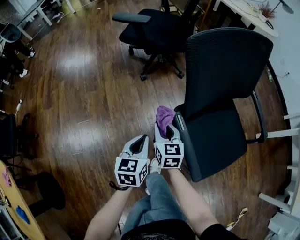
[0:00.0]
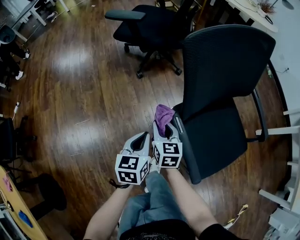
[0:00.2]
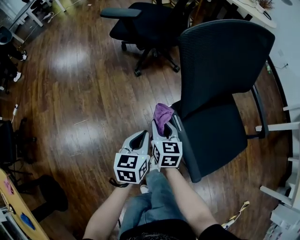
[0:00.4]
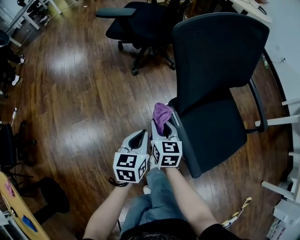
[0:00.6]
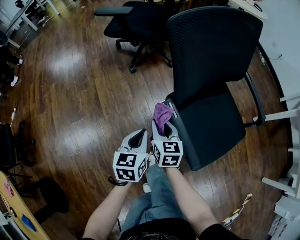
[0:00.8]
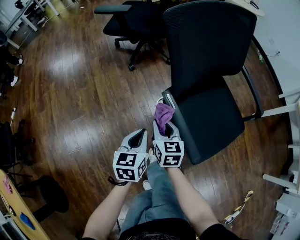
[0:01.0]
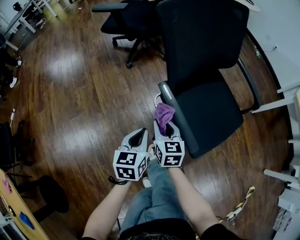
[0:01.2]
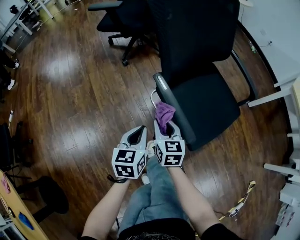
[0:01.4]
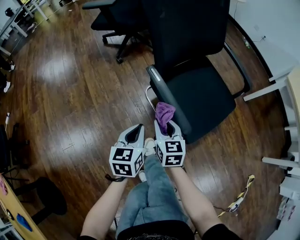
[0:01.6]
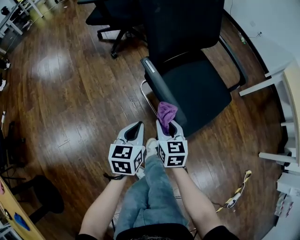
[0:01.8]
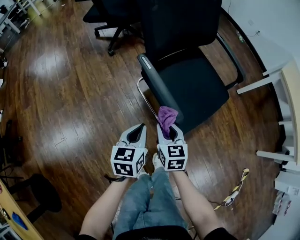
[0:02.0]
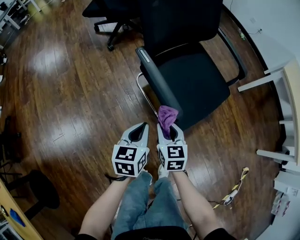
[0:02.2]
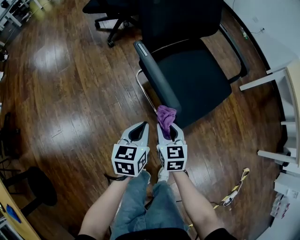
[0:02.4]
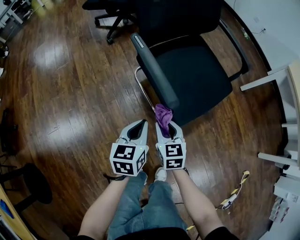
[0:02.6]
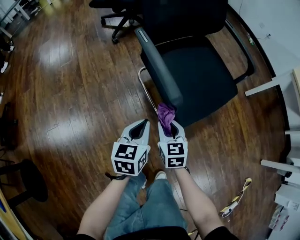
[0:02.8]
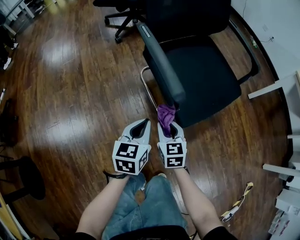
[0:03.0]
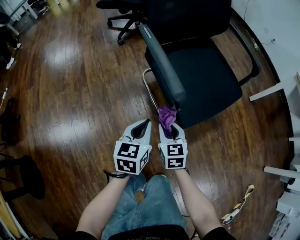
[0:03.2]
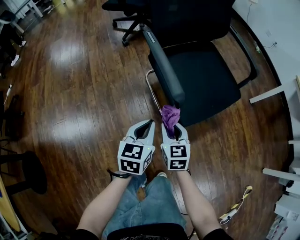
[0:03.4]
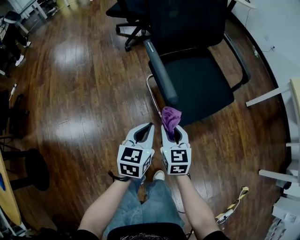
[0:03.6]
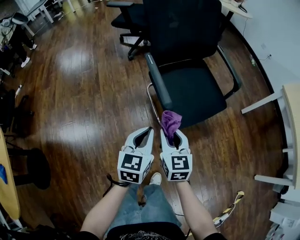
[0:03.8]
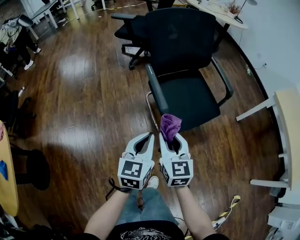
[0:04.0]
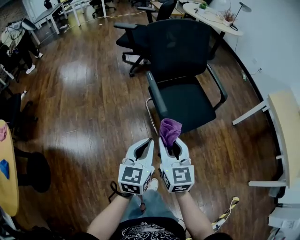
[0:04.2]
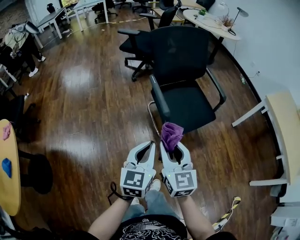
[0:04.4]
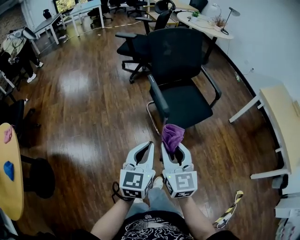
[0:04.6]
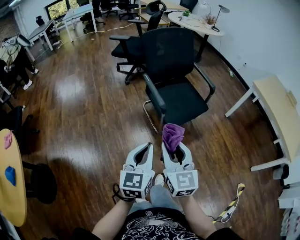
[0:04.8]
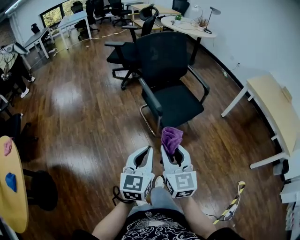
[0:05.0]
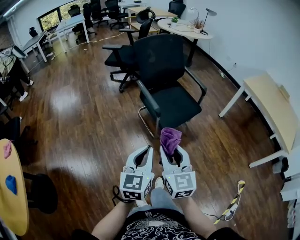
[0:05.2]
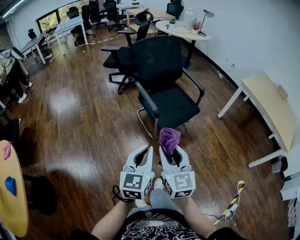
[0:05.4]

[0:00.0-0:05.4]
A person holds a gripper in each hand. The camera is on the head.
0:00.0 to 0:01.4: Both grippers move backward and to the right, some 15 cm.
0:01.4 to 0:02.8: Both grippers move to the right, backward and downward, roughly 20 cm.
0:02.8 to 0:04.0: The right gripper is displaced upward by approximately 30 cm; the left gripper shifts roughly 30 cm upward and backward.
0:04.0 to 0:05.4: The grippers both shift backward and upward by approximately 25 cm.

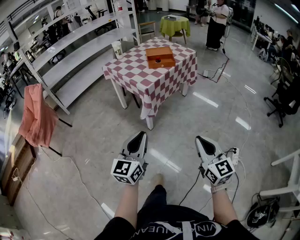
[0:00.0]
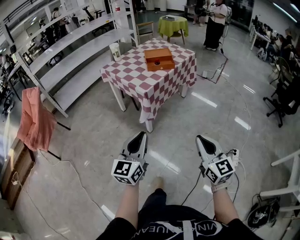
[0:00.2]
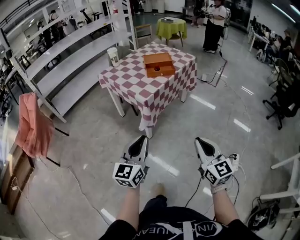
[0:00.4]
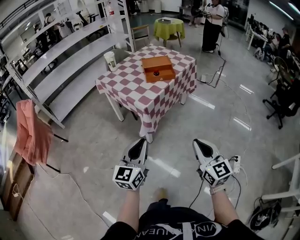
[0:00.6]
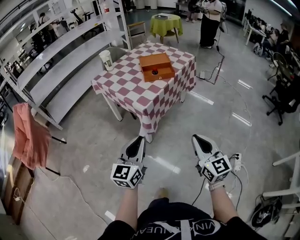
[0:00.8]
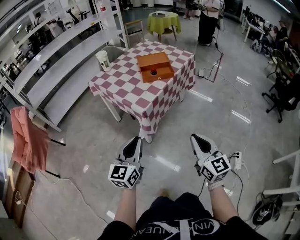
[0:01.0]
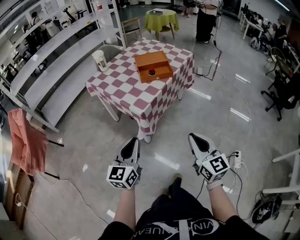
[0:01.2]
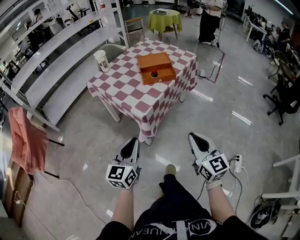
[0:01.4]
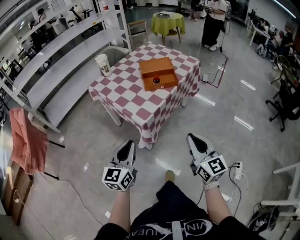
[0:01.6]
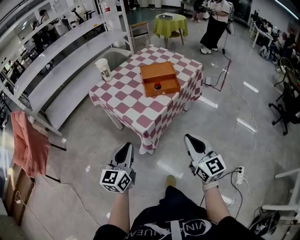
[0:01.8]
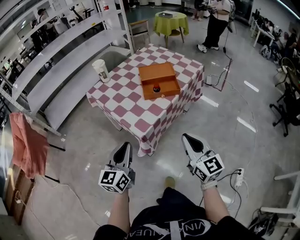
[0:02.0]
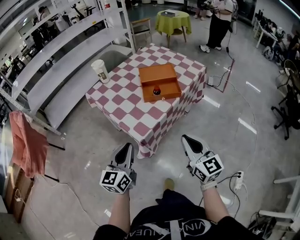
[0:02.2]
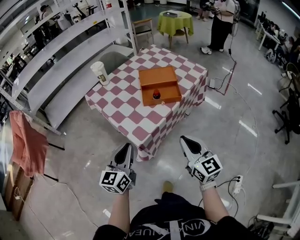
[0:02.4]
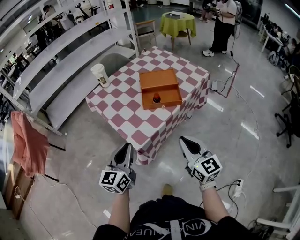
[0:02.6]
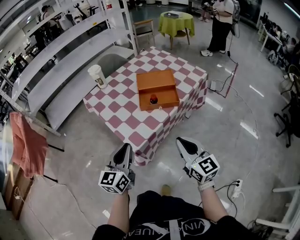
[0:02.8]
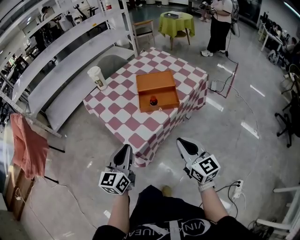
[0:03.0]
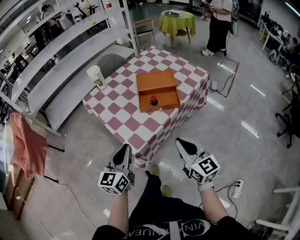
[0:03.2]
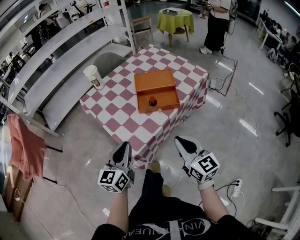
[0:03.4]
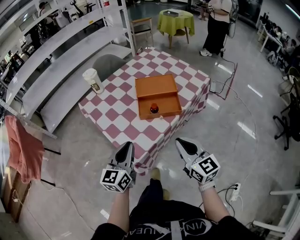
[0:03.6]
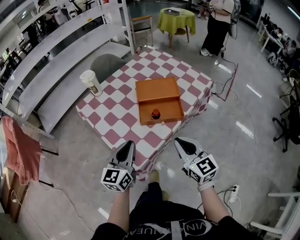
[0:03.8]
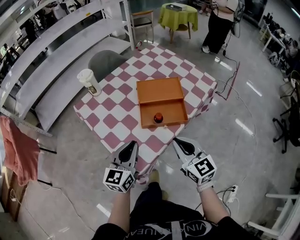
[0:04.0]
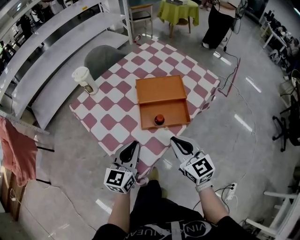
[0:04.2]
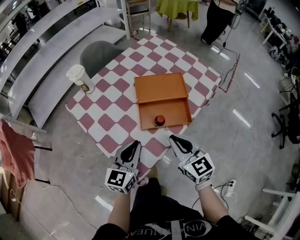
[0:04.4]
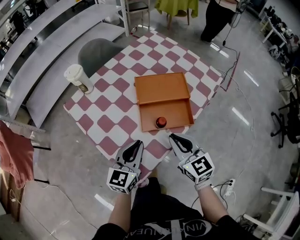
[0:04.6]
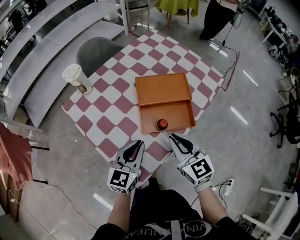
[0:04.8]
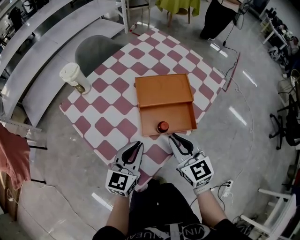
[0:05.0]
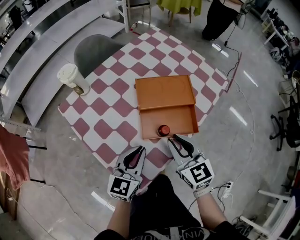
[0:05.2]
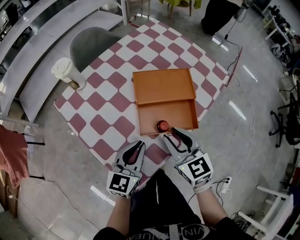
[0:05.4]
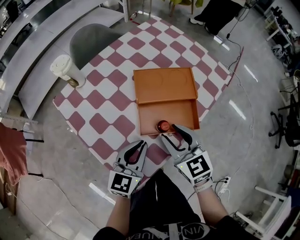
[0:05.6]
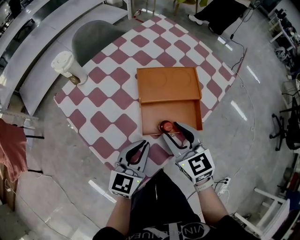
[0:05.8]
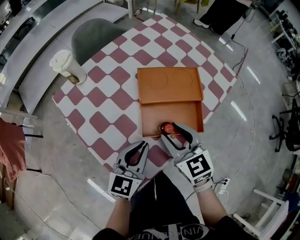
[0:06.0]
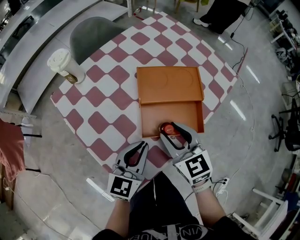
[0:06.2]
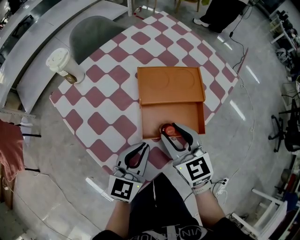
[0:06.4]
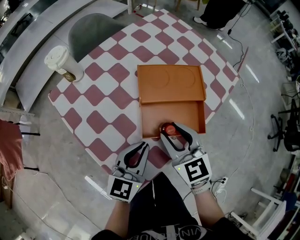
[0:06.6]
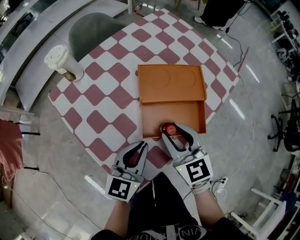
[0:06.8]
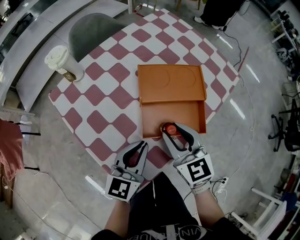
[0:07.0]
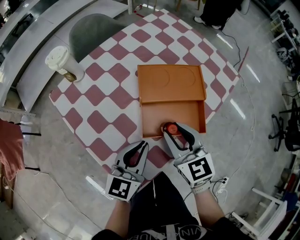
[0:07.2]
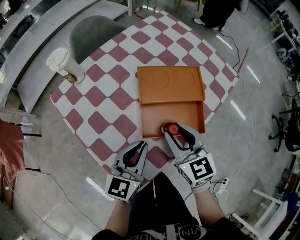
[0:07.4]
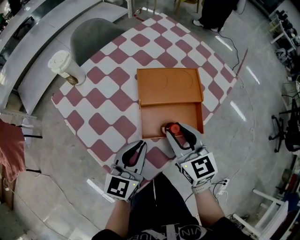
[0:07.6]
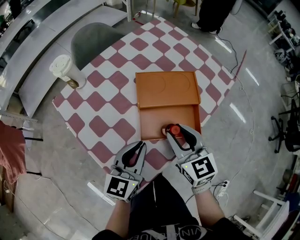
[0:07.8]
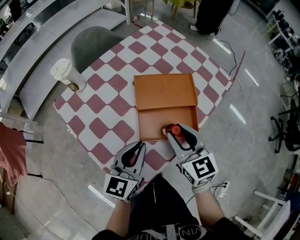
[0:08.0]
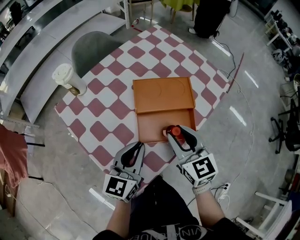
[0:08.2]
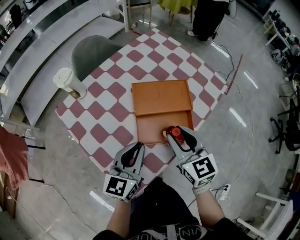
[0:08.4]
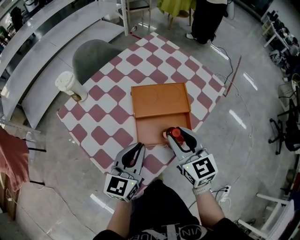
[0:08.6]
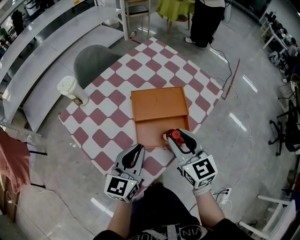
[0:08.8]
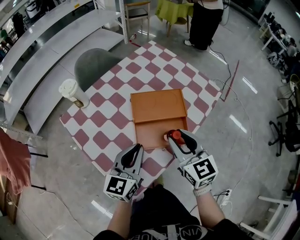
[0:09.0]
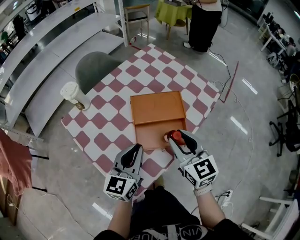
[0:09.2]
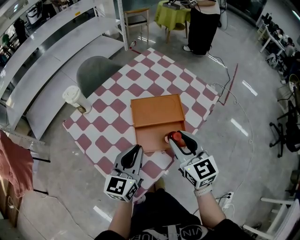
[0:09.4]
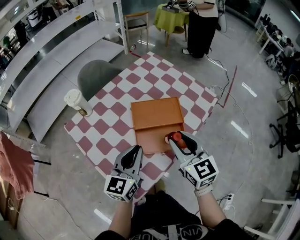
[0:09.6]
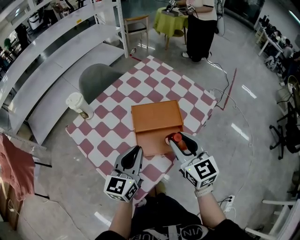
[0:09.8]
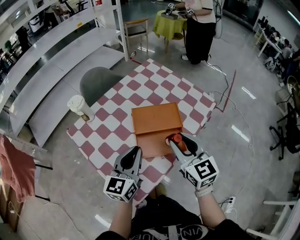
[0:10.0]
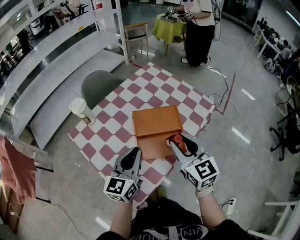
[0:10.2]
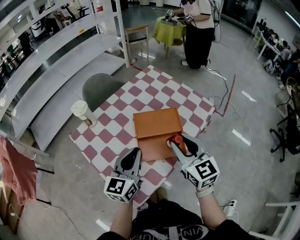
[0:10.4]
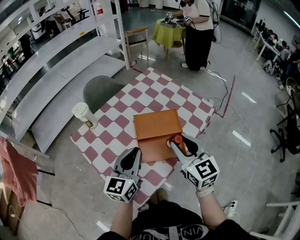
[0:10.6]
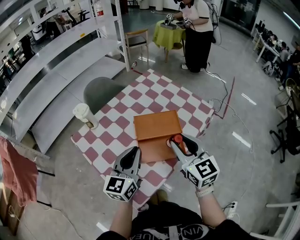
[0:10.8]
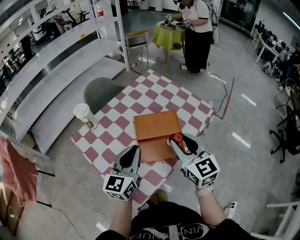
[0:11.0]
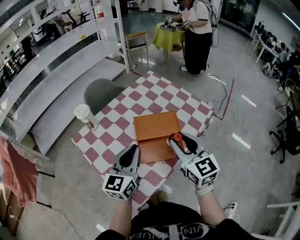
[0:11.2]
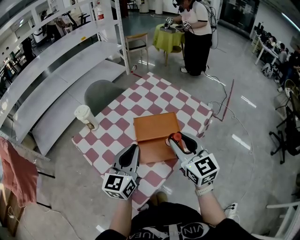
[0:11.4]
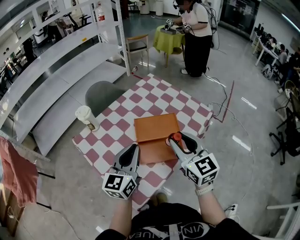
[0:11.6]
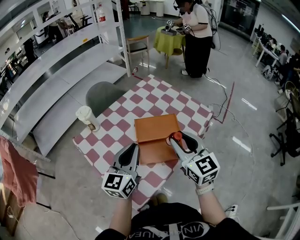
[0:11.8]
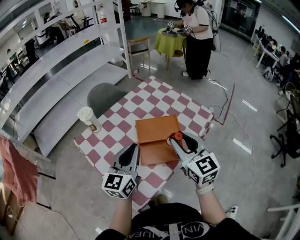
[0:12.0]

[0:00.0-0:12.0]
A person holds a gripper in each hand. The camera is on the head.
0:00.0 to 0:01.6: The two grippers go roughly 30 cm forward.
0:01.6 to 0:03.0: The two grippers go approximately 15 cm forward.
0:03.0 to 0:04.4: Both grippers travel together forward, approximately 20 cm.
0:04.4 to 0:06.0: The right gripper moves forward, roughly 10 cm, and opens up, while the left gripper shifts by about 5 cm.
0:06.0 to 0:07.6: The grippers move only a little.
0:07.6 to 0:09.0: The two grippers go about 5 cm upward.
0:09.0 to 0:10.4: Both grippers move upward, some 5 cm.
0:10.4 to 0:12.0: There are only small adjustments of the grippers.

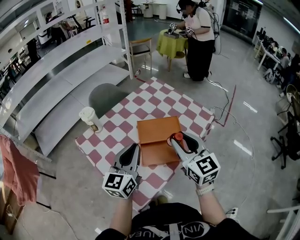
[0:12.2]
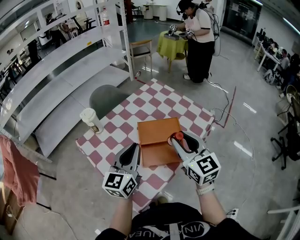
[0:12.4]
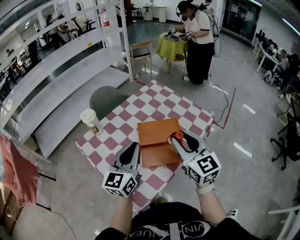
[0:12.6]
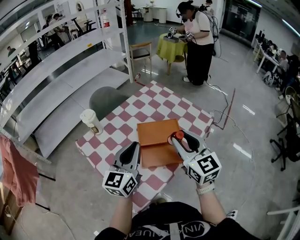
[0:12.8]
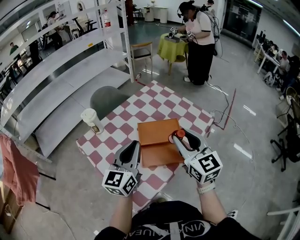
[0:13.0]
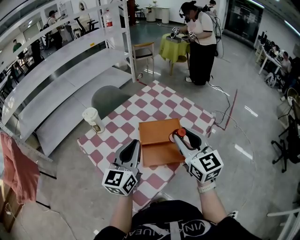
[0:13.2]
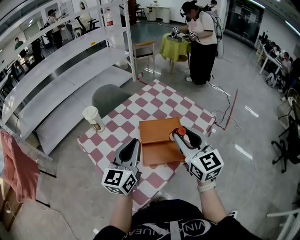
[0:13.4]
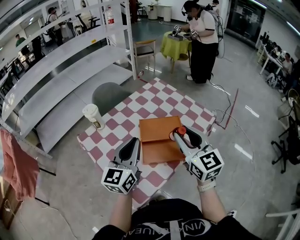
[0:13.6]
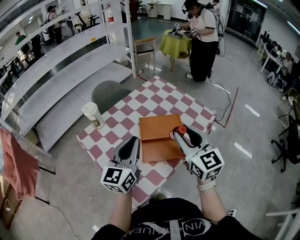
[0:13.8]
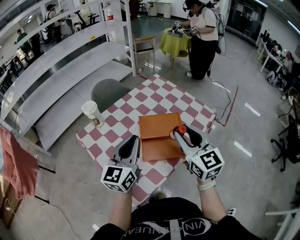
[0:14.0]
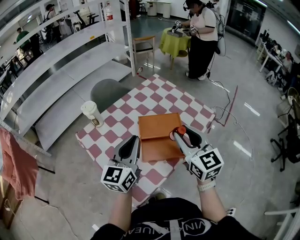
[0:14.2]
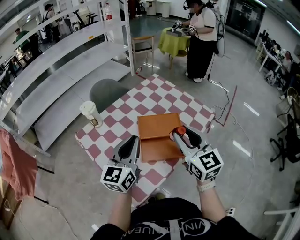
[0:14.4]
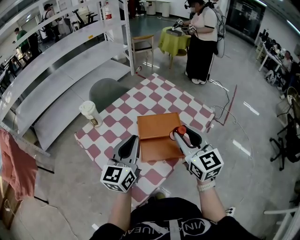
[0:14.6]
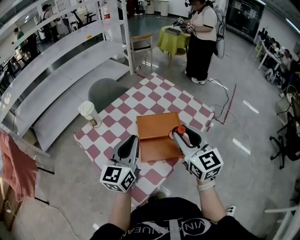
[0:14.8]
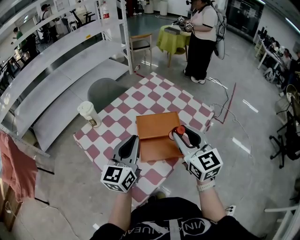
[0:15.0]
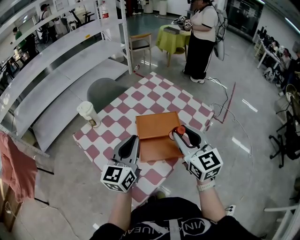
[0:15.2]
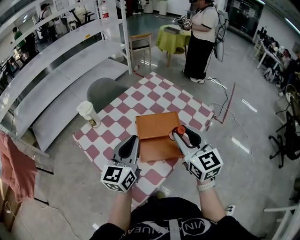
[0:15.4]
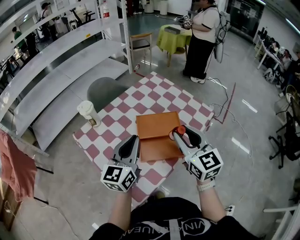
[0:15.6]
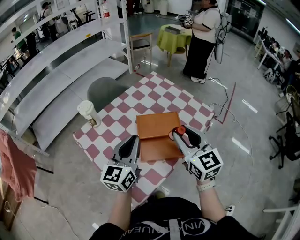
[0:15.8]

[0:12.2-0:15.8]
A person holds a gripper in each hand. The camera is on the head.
0:12.2 to 0:15.8: The grippers move only a little.

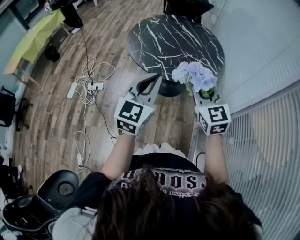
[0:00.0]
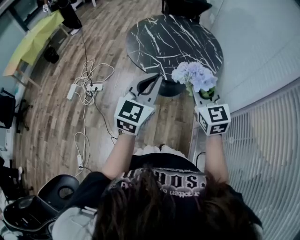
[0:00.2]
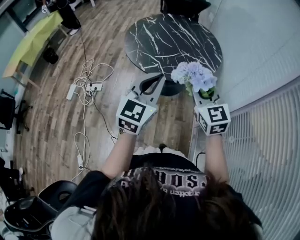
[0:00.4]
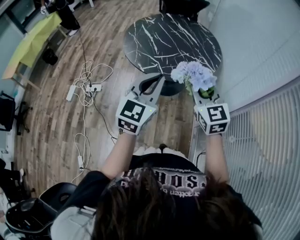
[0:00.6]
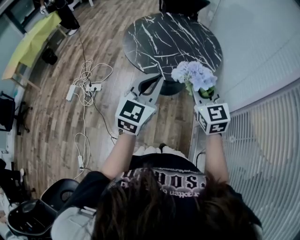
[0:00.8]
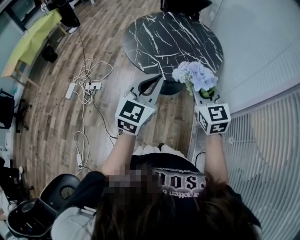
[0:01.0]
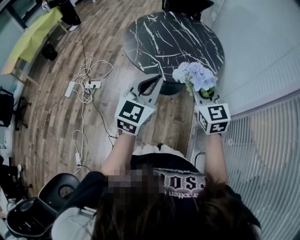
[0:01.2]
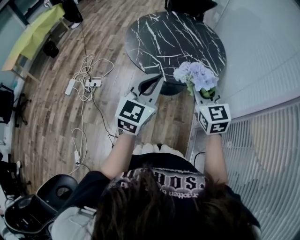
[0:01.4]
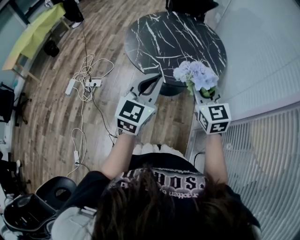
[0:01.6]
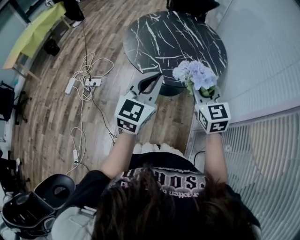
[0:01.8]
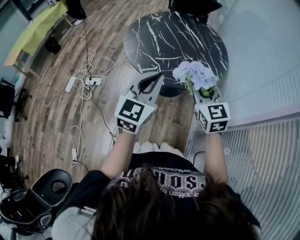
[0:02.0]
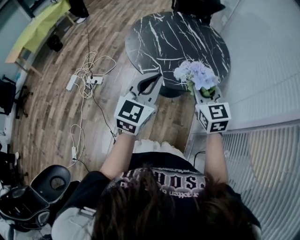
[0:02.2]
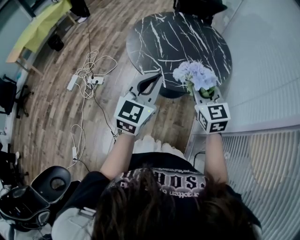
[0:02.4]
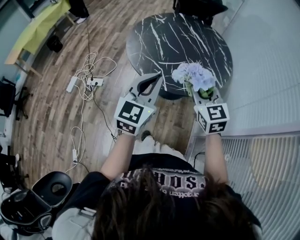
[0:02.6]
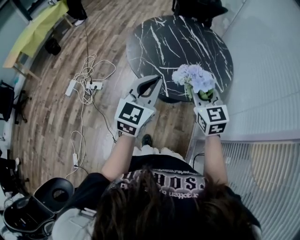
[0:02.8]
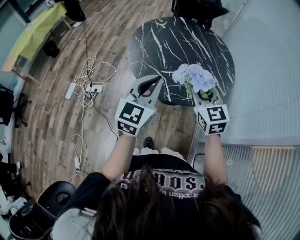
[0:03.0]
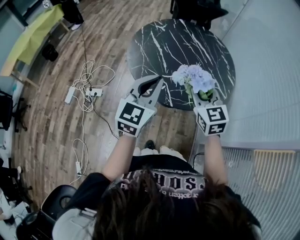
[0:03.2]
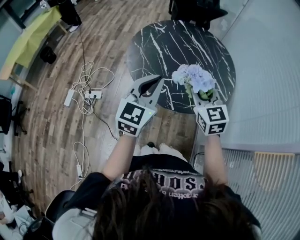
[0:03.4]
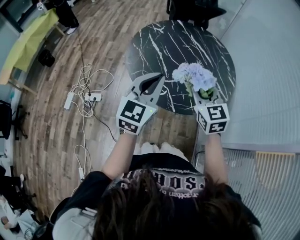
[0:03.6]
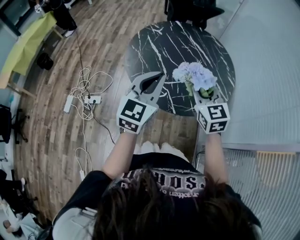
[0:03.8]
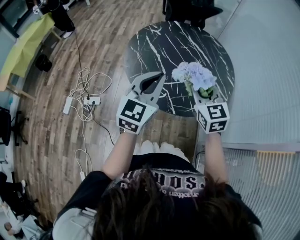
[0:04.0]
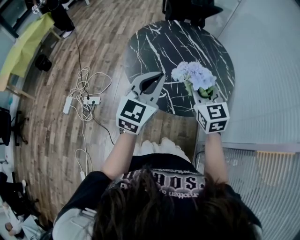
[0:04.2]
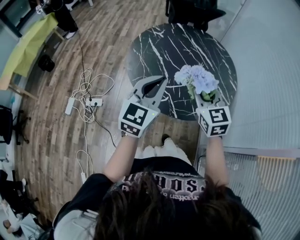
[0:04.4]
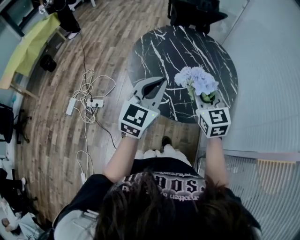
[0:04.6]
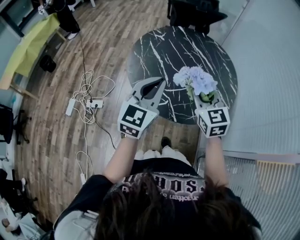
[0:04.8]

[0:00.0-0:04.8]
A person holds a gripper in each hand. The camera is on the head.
0:00.0 to 0:01.6: Both grippers travel together forward, some 5 cm.
0:01.6 to 0:03.2: The grippers both shift forward by some 15 cm.
0:03.2 to 0:04.8: The grippers both shift forward by about 5 cm.
